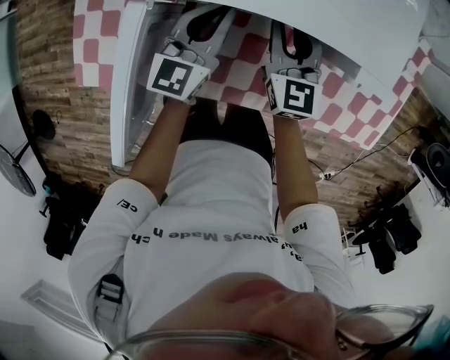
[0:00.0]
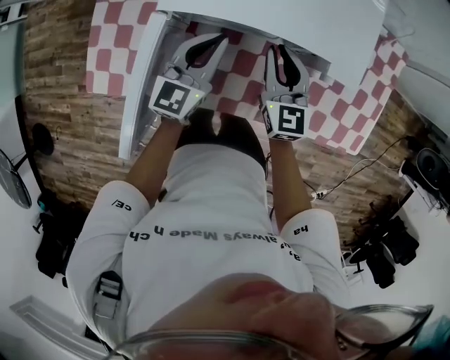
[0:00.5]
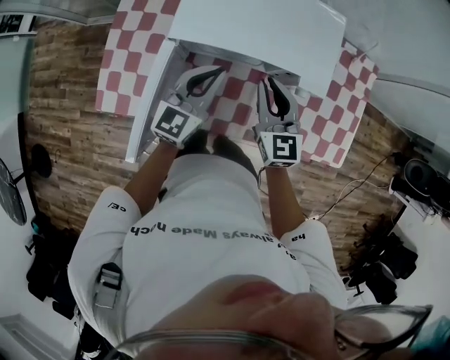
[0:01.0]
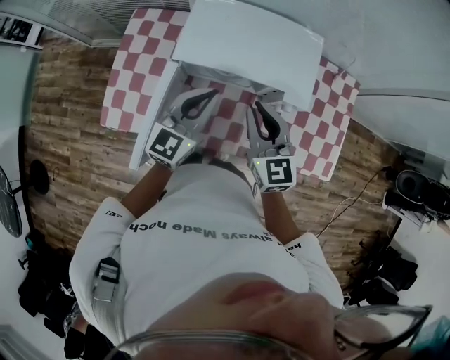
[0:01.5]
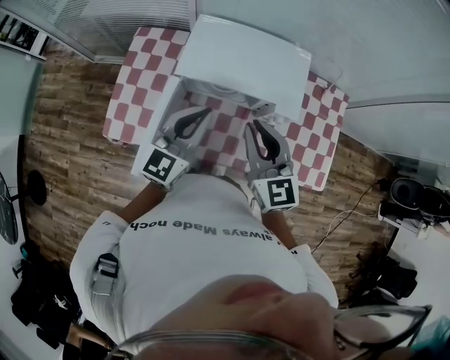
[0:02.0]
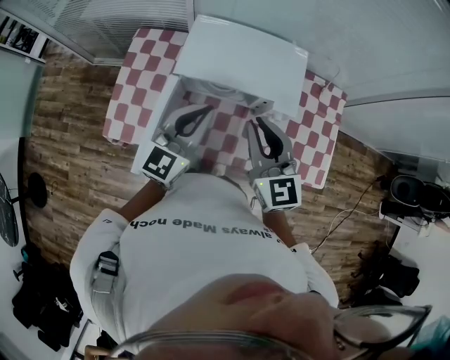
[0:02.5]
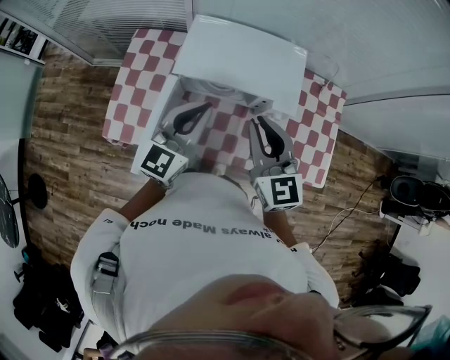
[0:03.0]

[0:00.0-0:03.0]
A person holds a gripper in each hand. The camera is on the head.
0:00.0 to 0:01.5: Both grippers travel together upward and backward, some 30 cm.
0:01.5 to 0:03.0: Both grippers move upward, approximately 10 cm.

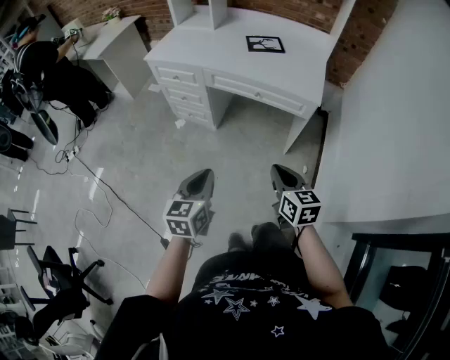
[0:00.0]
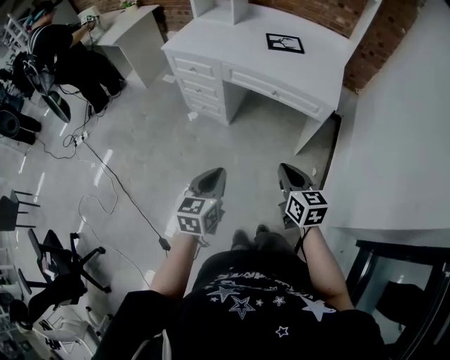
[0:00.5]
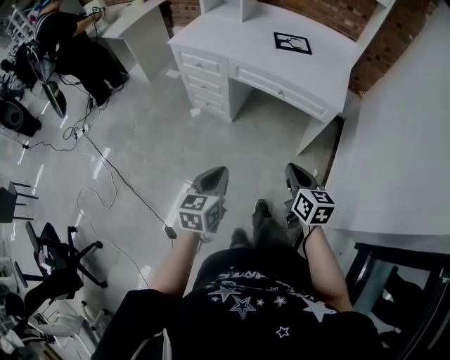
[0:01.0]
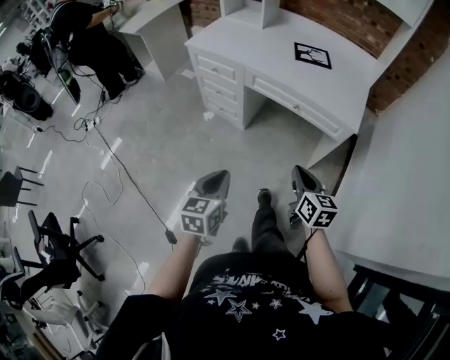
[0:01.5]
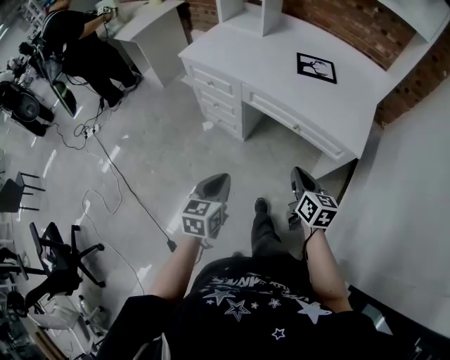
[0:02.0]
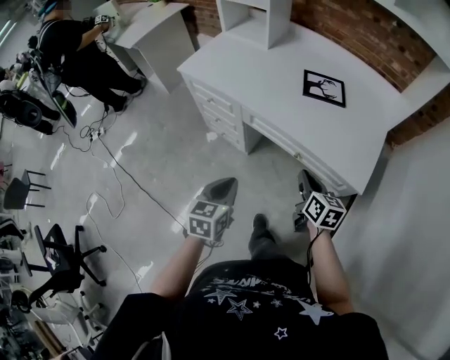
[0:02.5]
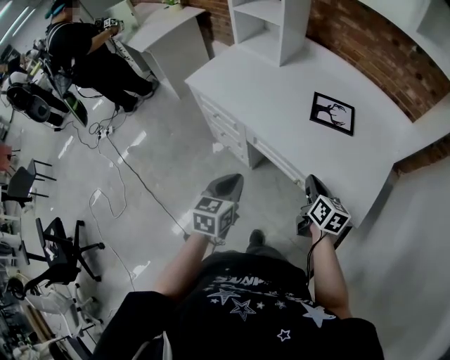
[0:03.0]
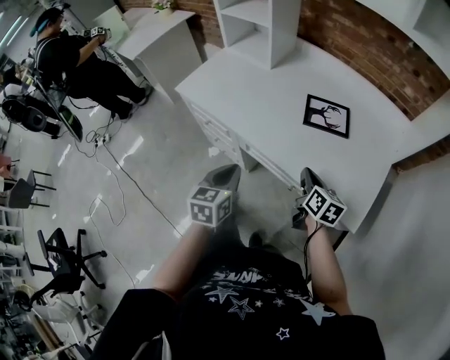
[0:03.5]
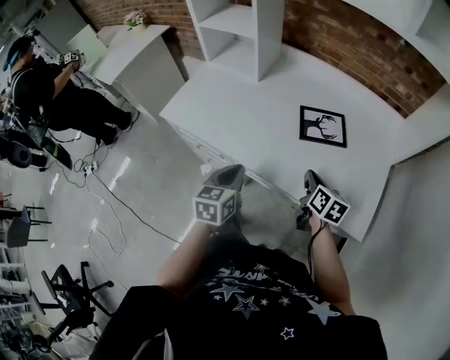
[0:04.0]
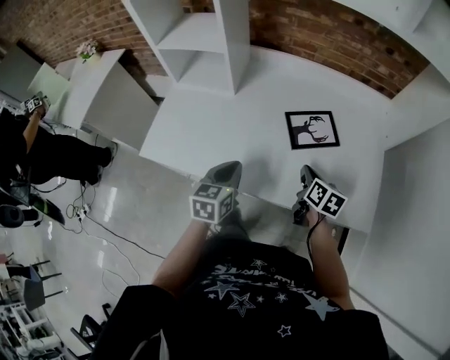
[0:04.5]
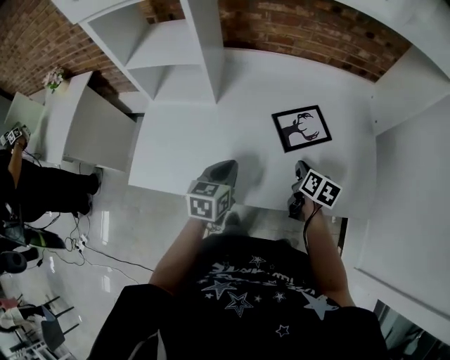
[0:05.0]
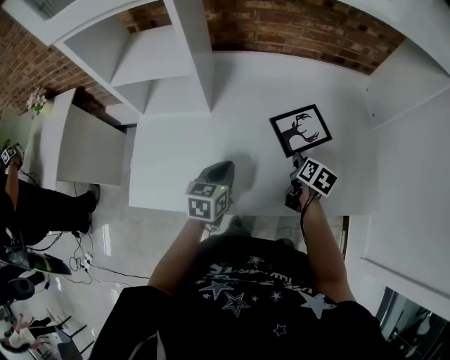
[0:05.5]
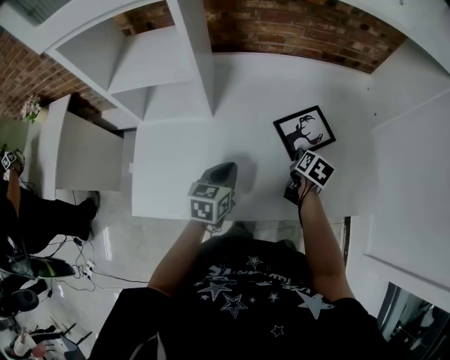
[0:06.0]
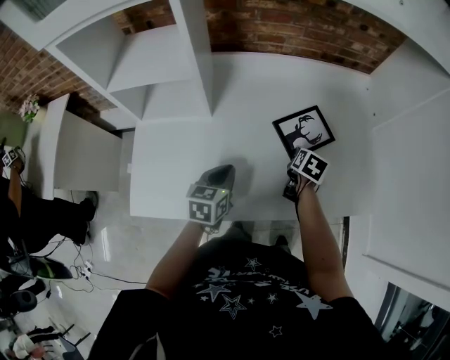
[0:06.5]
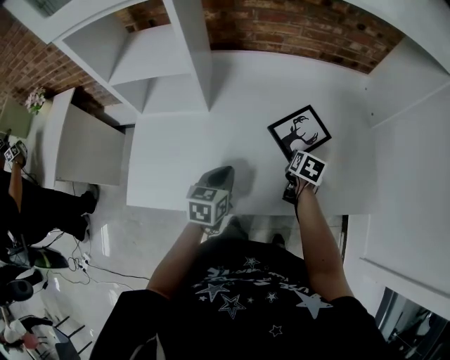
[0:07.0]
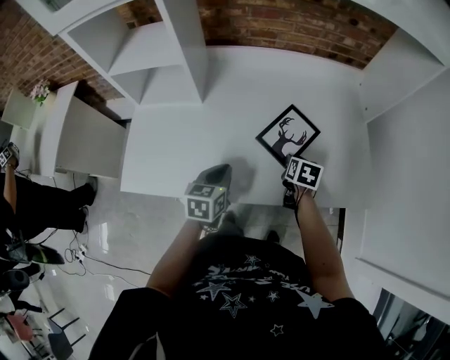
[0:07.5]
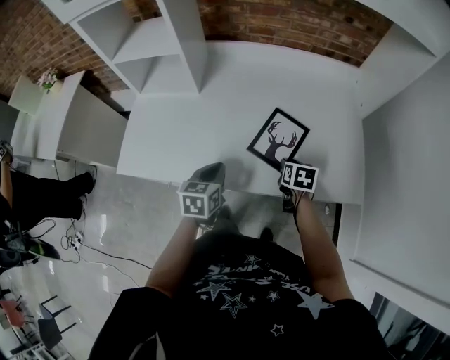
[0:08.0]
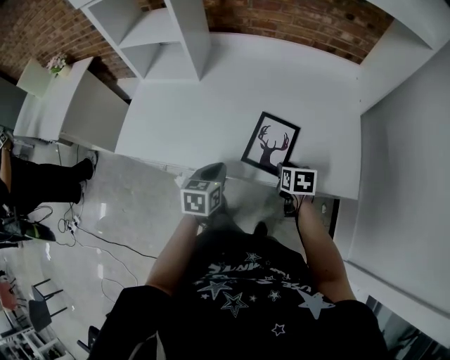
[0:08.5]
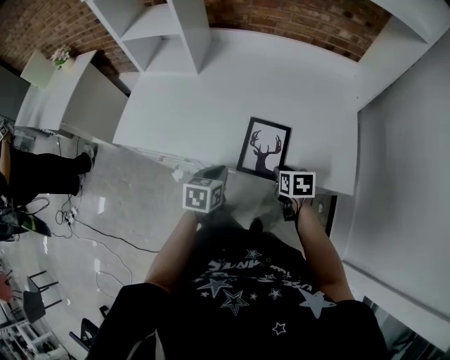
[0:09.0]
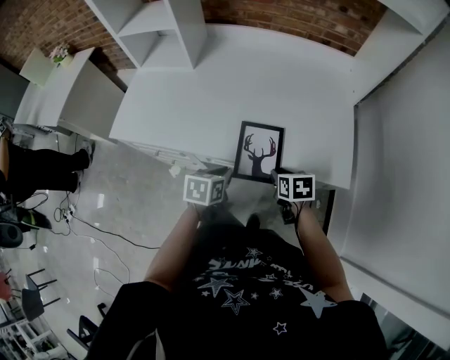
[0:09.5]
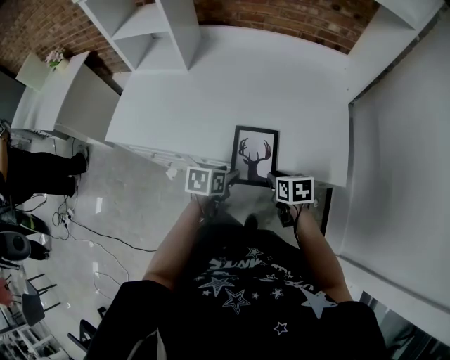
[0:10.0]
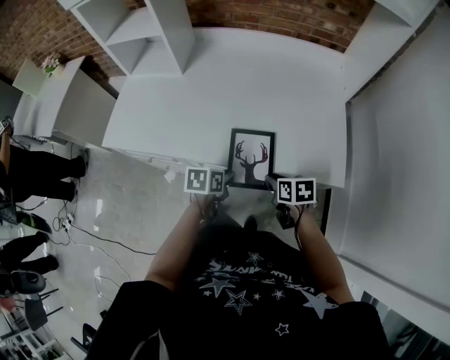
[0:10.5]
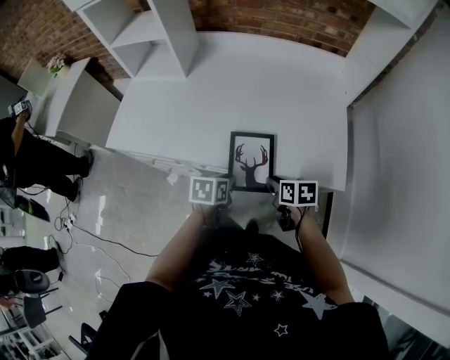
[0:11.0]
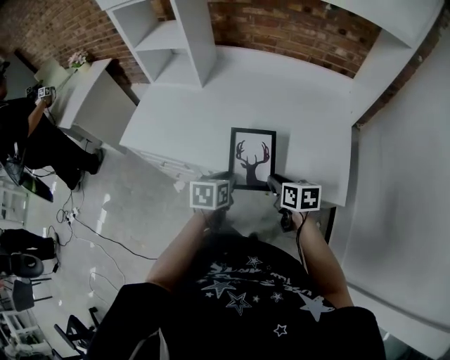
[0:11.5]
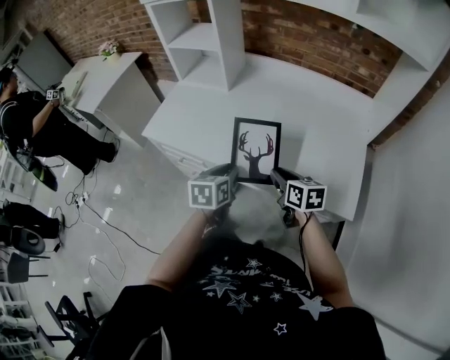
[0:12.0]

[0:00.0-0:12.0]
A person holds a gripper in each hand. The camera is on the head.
0:00.0 to 0:02.0: Both grippers travel together forward, some 20 cm.
0:02.0 to 0:04.0: The grippers both shift forward by about 35 cm.
0:04.0 to 0:06.0: The right gripper ends up approximately 15 cm from where it was, changes its angle by roughly 50 degrees, and opens its fingers, while the left gripper ends up about 25 cm from where it was, and rotates about 30 degrees.
0:06.0 to 0:08.0: Both grippers travel together backward and to the right, about 10 cm. The right gripper turns by approximately 30 degrees.
0:08.0 to 0:10.0: The left gripper is displaced to the right, backward and downward by approximately 15 cm, changes its angle by roughly 20 degrees, and opens. Meanwhile the right gripper goes approximately 15 cm backward, and turns by roughly 20 degrees.
0:10.0 to 0:12.0: The grippers both shift upward and to the left by approximately 10 cm. The left gripper swivels some 30 degrees. The right gripper changes its angle by some 30 degrees.

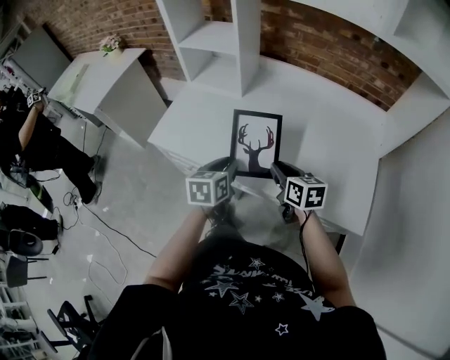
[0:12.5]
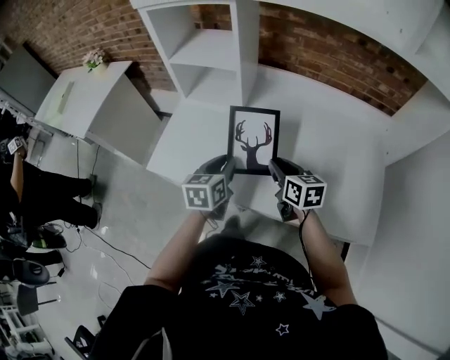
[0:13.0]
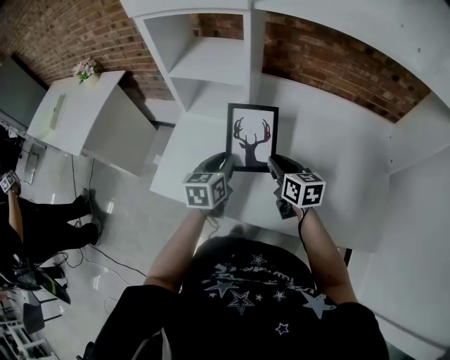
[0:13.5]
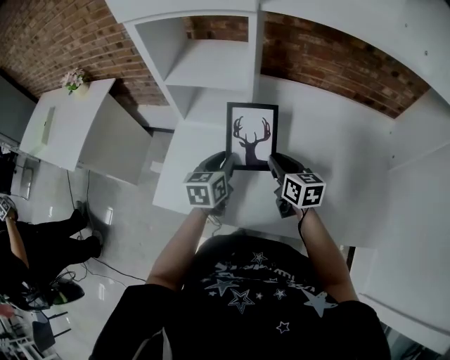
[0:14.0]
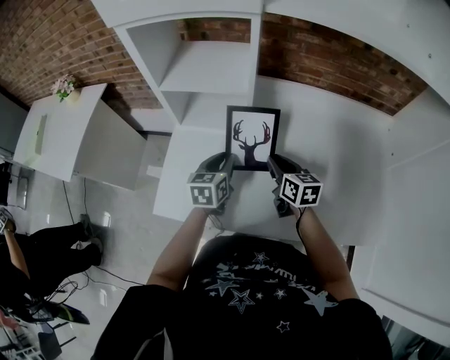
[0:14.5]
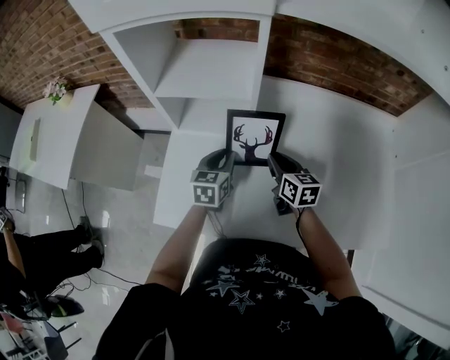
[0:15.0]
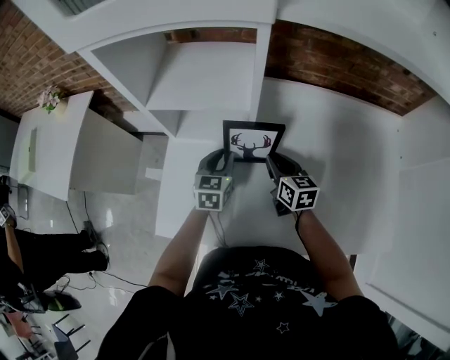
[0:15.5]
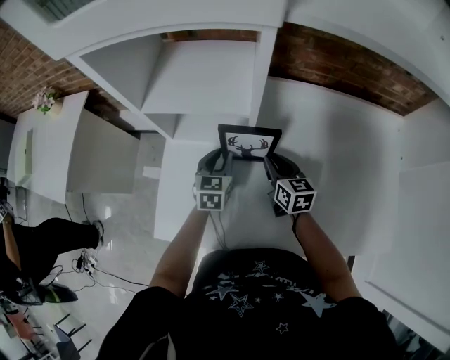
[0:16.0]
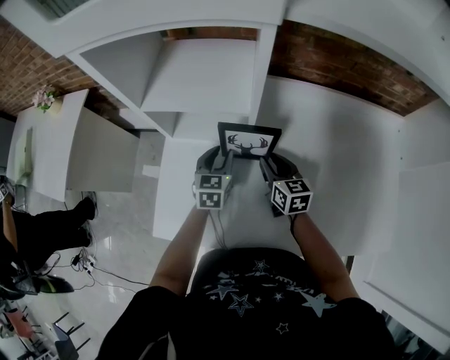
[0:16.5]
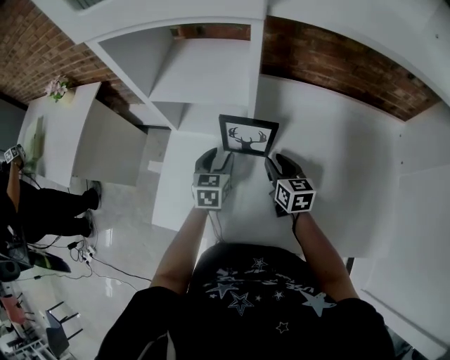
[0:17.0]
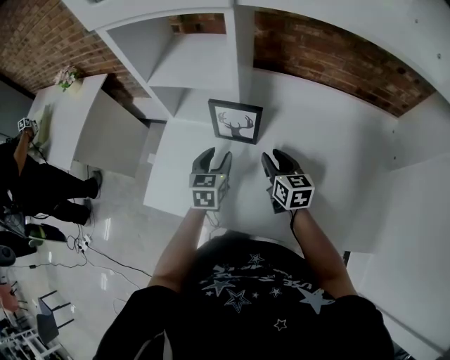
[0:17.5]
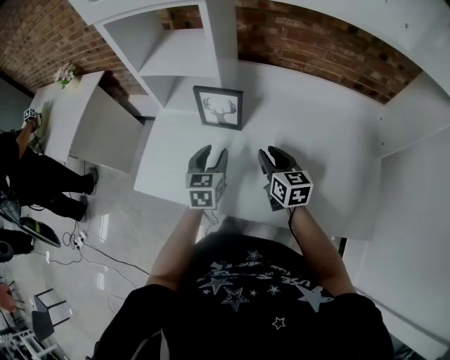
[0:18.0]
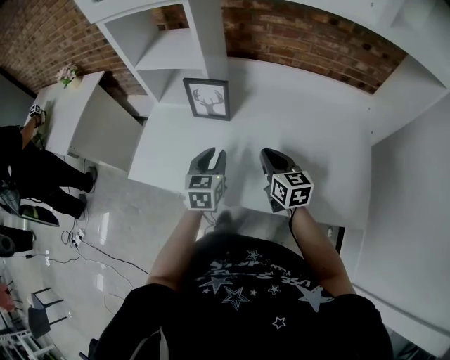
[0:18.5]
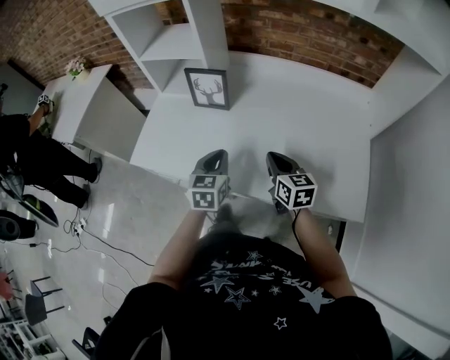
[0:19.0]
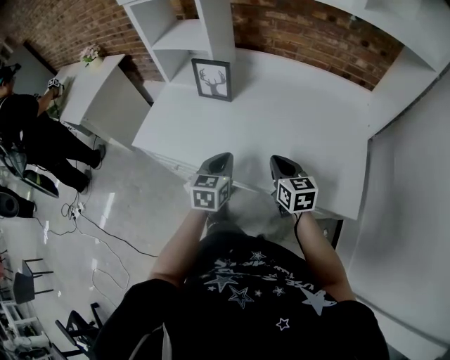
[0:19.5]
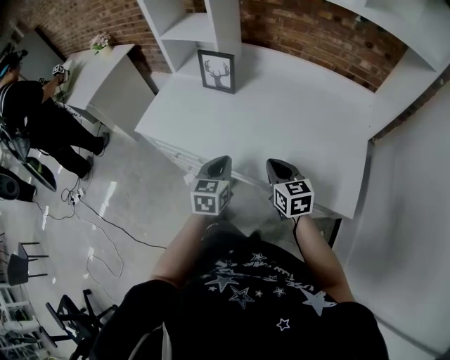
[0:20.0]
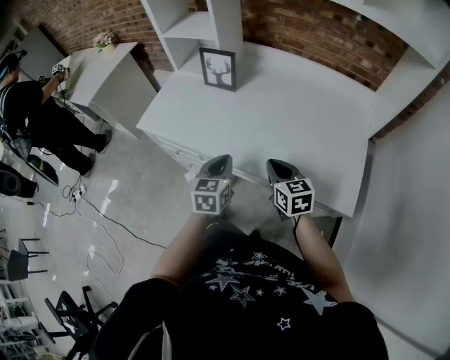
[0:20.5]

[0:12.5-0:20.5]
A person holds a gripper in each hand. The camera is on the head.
0:12.5 to 0:14.5: The left gripper moves forward, about 25 cm; the right gripper travels forward and to the left by approximately 25 cm.
0:14.5 to 0:16.5: The left gripper goes approximately 10 cm forward and downward. The right gripper travels forward by approximately 5 cm.
0:16.5 to 0:18.5: The two grippers go about 20 cm backward and to the right. The right gripper closes its fingers.
0:18.5 to 0:20.5: The grippers both shift backward by some 20 cm. The left gripper closes.

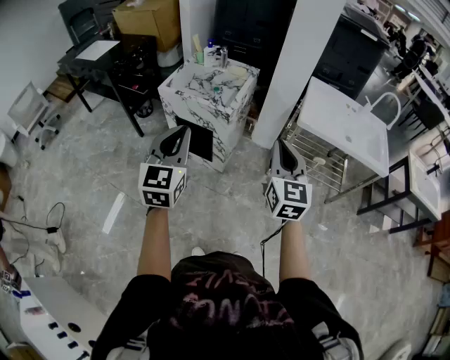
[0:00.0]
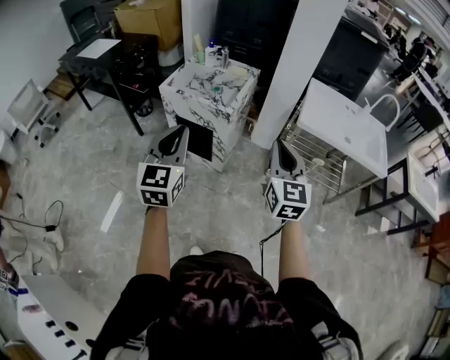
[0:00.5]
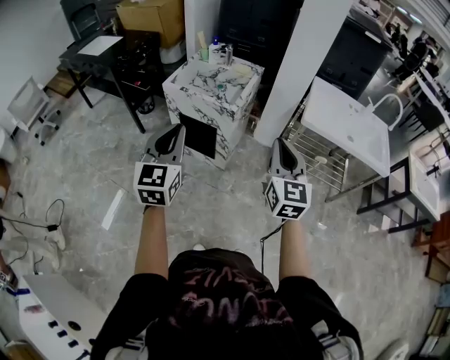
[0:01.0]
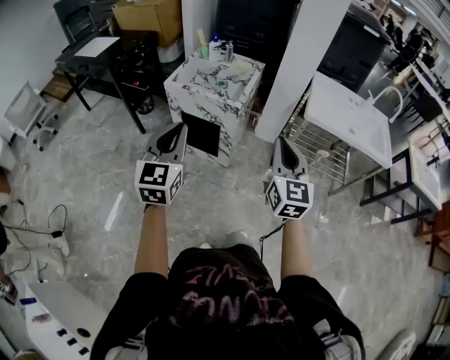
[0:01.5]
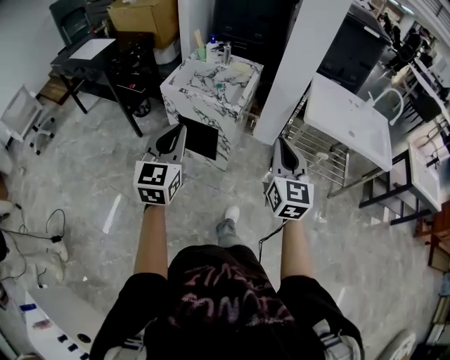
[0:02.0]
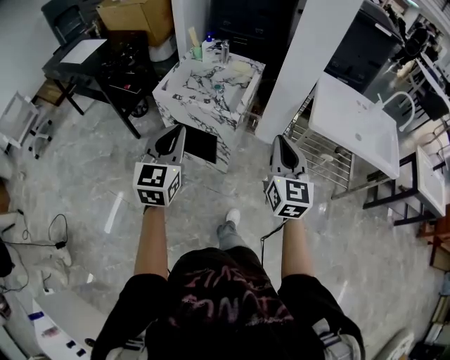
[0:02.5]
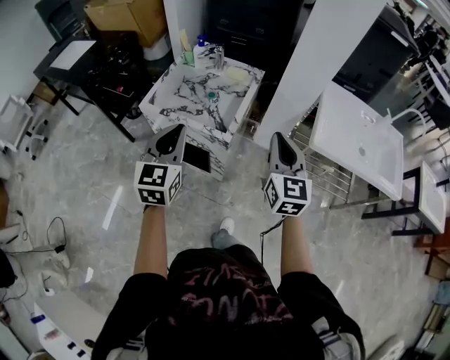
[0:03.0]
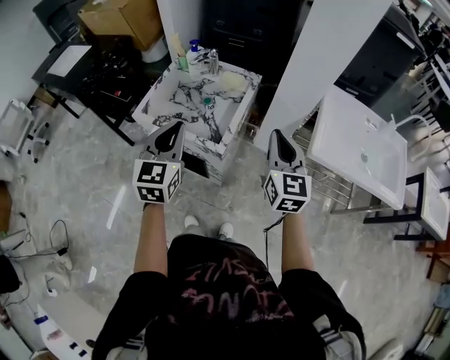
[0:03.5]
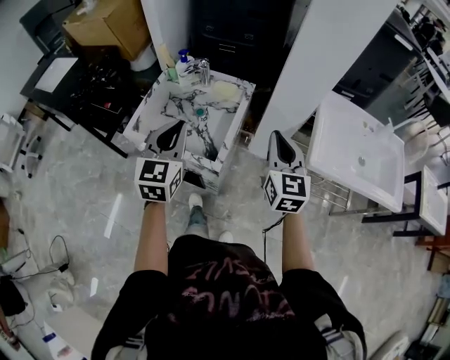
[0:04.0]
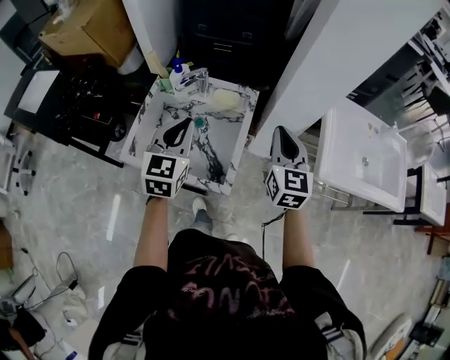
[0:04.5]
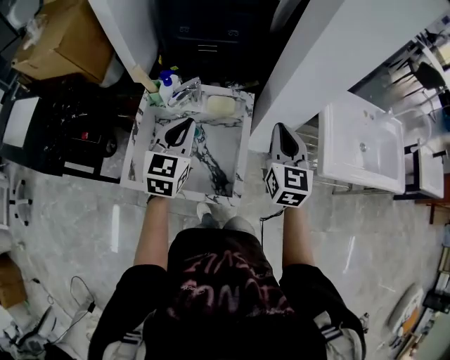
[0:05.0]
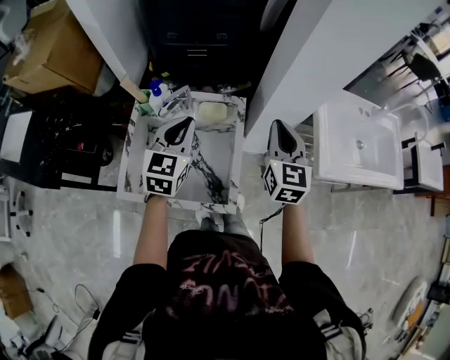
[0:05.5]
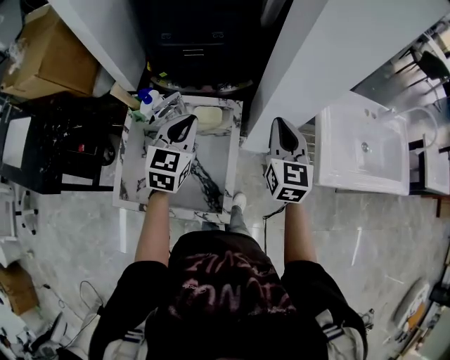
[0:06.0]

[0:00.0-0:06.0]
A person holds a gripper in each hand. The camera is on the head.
0:00.0 to 0:02.0: Both grippers travel together to the left, about 5 cm.
0:02.0 to 0:04.0: The pair of grippers is taken forward, approximately 40 cm.
0:04.0 to 0:06.0: Both grippers move forward, about 25 cm. The left gripper turns by roughly 20 degrees.
